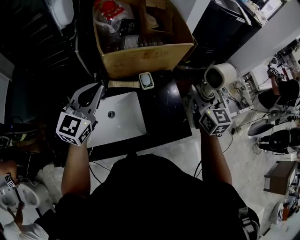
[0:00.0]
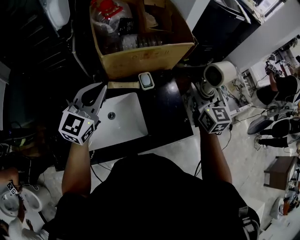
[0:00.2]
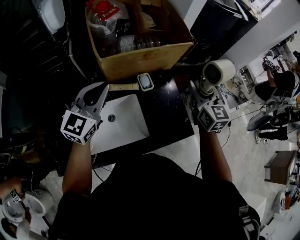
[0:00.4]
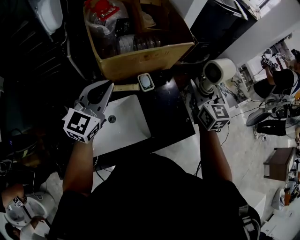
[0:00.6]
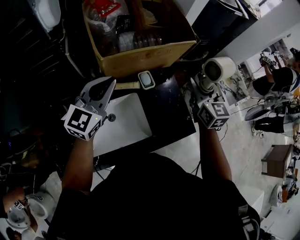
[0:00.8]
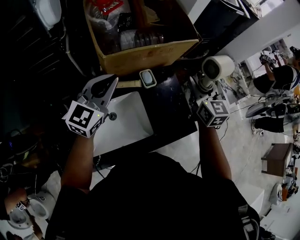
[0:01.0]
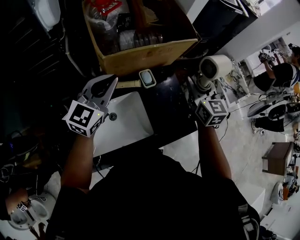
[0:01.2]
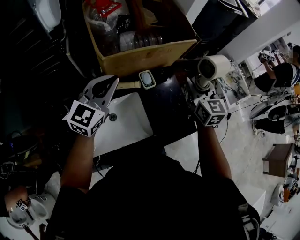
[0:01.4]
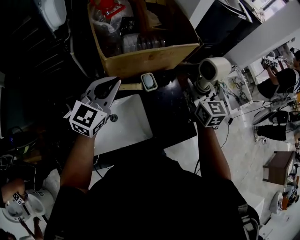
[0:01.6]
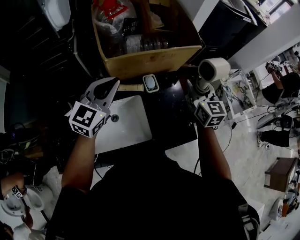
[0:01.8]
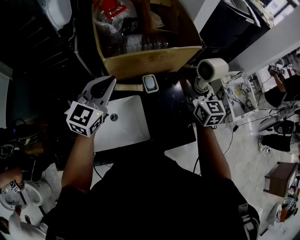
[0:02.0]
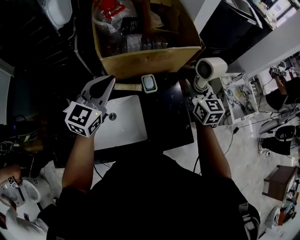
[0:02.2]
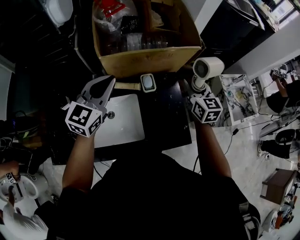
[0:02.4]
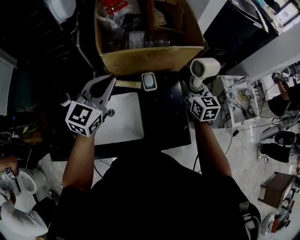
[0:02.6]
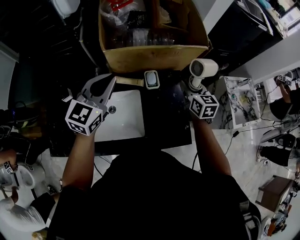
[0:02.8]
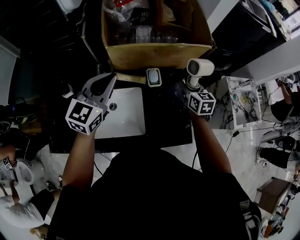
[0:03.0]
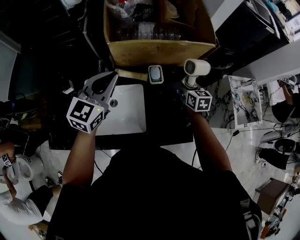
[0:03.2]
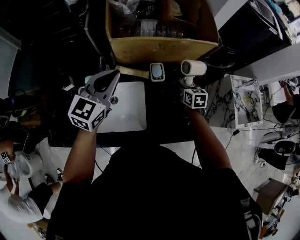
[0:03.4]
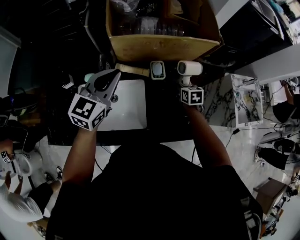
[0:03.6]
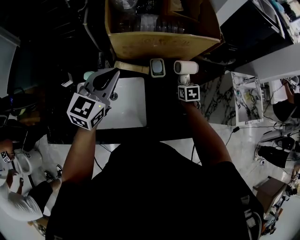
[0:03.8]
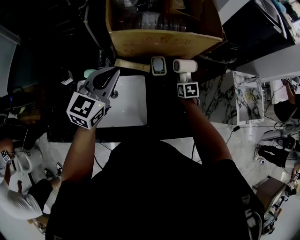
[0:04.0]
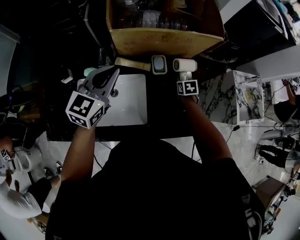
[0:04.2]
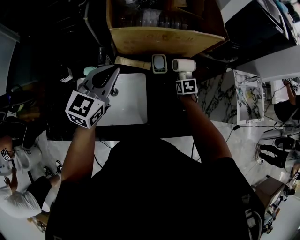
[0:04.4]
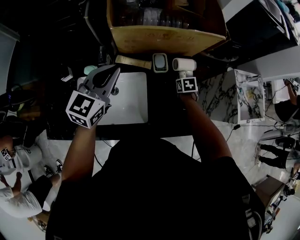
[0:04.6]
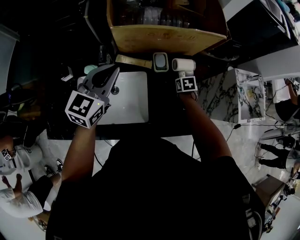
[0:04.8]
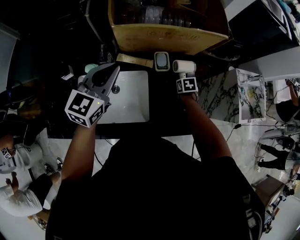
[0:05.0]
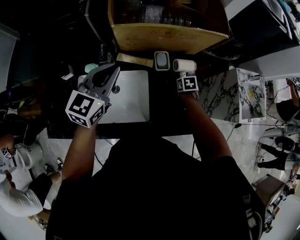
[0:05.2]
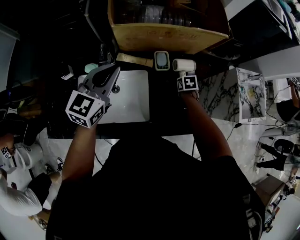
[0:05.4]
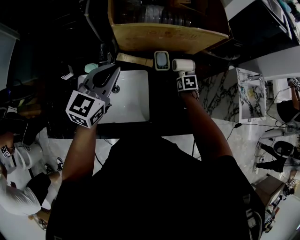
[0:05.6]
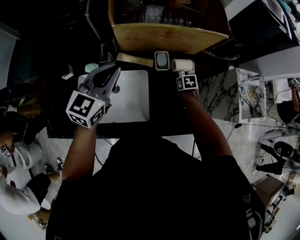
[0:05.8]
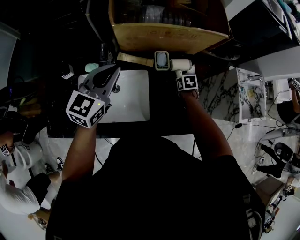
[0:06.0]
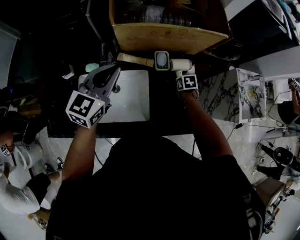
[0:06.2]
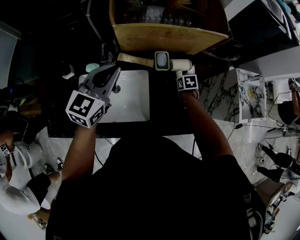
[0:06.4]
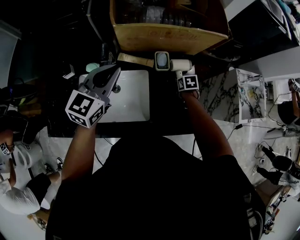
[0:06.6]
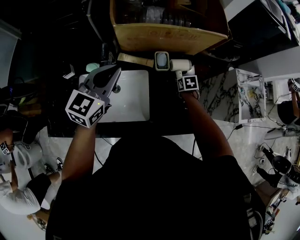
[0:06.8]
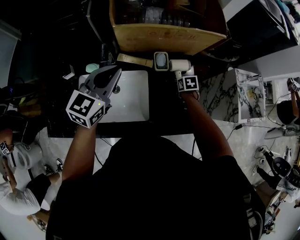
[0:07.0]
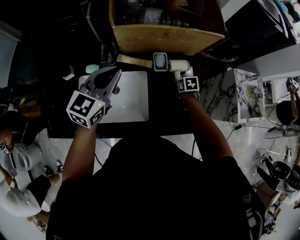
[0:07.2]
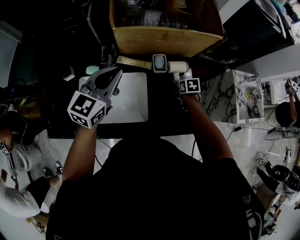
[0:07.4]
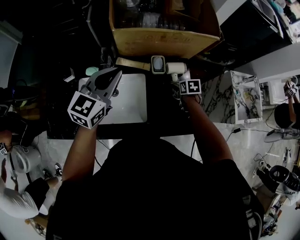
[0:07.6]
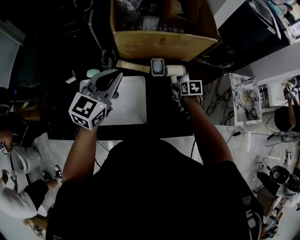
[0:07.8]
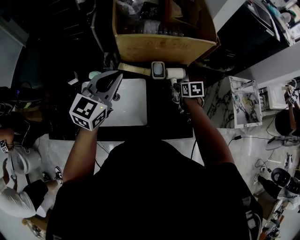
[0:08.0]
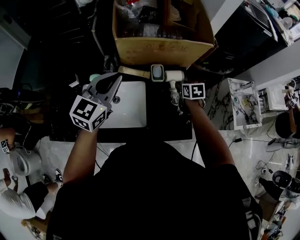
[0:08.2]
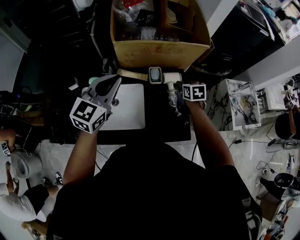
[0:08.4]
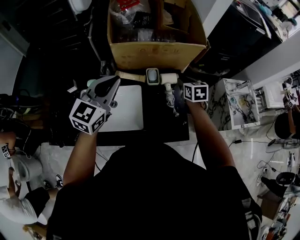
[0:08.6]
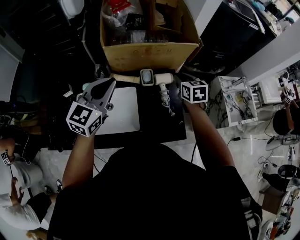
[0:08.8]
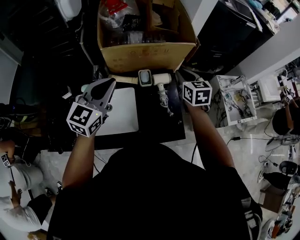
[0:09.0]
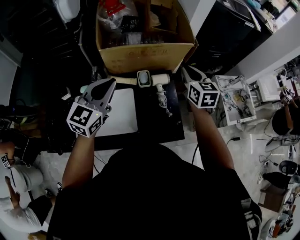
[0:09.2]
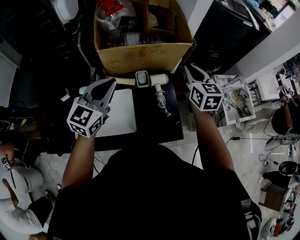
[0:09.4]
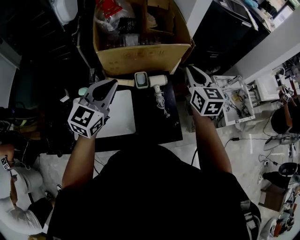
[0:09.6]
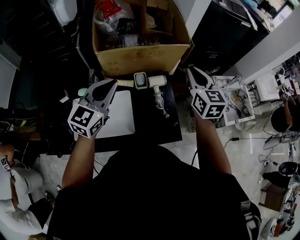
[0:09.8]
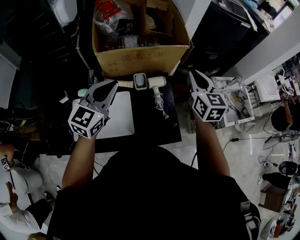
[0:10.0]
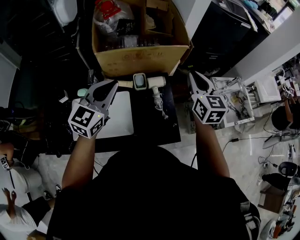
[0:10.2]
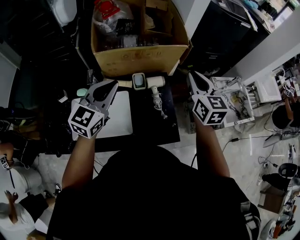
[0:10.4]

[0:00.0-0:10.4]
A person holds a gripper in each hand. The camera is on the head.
0:00.0 to 0:01.4: The right gripper moves to the left, roughly 5 cm. The left gripper is displaced forward by approximately 10 cm.
0:01.4 to 0:03.0: The right gripper moves downward and forward, roughly 15 cm, and changes its angle by roughly 20 degrees.
0:03.0 to 0:04.4: The right gripper is displaced downward by approximately 20 cm, and points its fingers some 40 degrees further downward.
0:04.4 to 0:07.4: There are only small adjustments of the grippers.
0:07.4 to 0:09.0: The left gripper moves upward, approximately 5 cm. Meanwhile the right gripper moves upward, roughly 30 cm, tilts its fingers about 40 degrees upward, and closes up.
0:09.0 to 0:10.4: The right gripper goes roughly 10 cm upward and to the right.

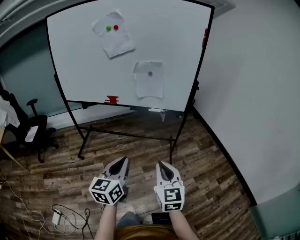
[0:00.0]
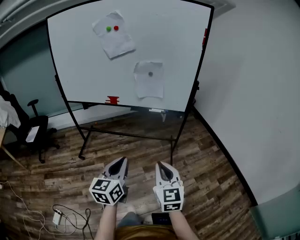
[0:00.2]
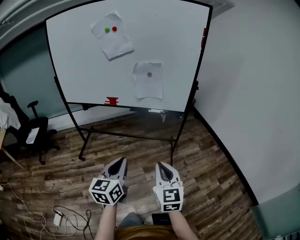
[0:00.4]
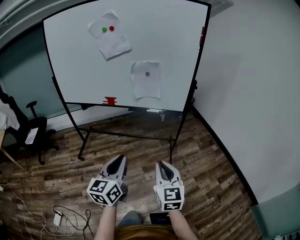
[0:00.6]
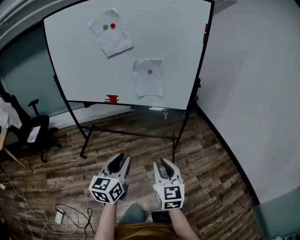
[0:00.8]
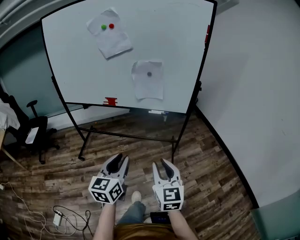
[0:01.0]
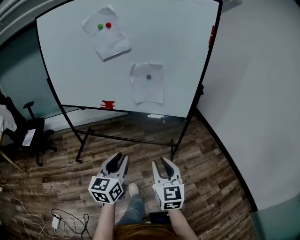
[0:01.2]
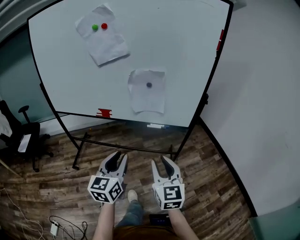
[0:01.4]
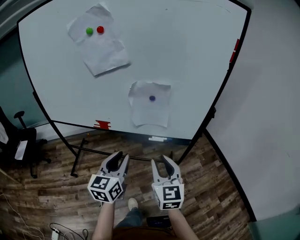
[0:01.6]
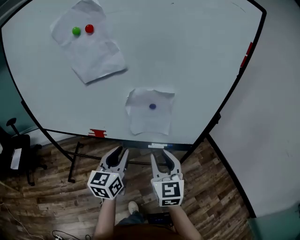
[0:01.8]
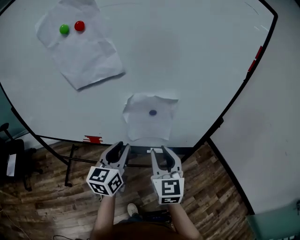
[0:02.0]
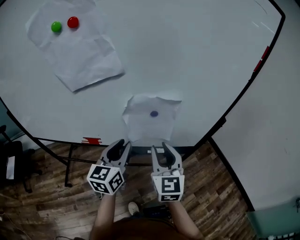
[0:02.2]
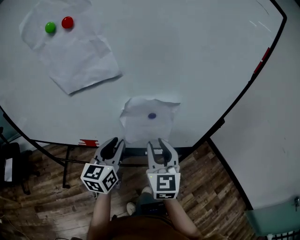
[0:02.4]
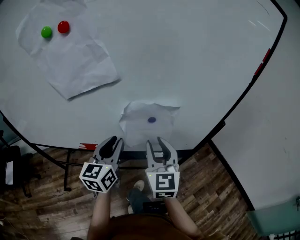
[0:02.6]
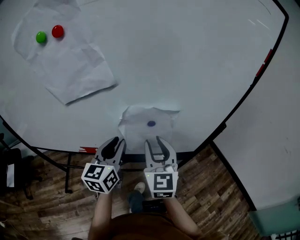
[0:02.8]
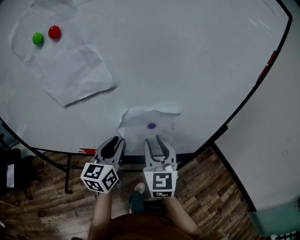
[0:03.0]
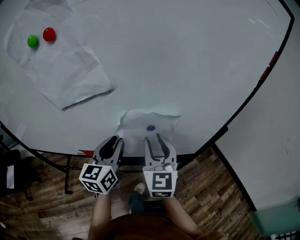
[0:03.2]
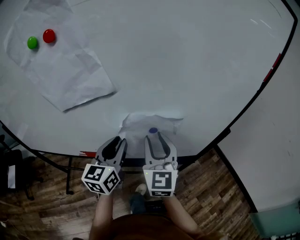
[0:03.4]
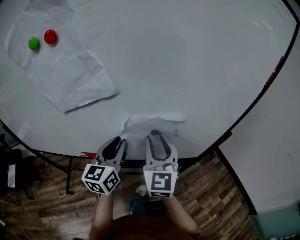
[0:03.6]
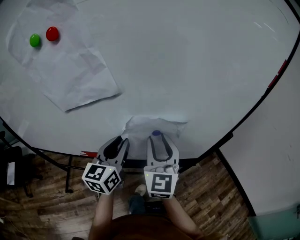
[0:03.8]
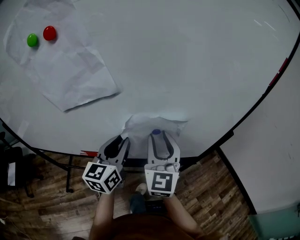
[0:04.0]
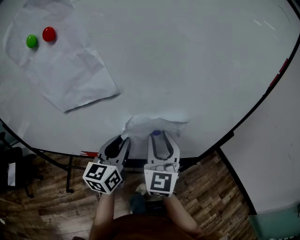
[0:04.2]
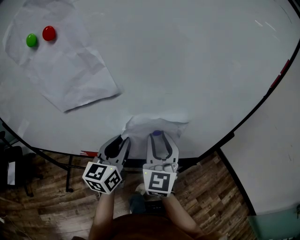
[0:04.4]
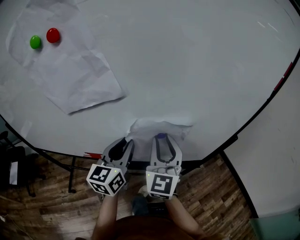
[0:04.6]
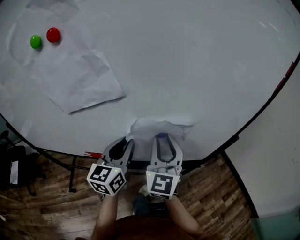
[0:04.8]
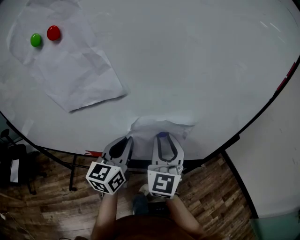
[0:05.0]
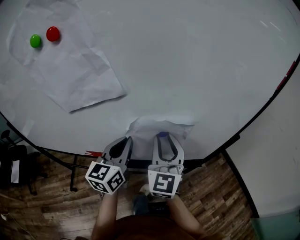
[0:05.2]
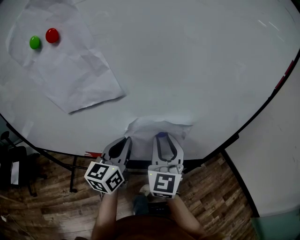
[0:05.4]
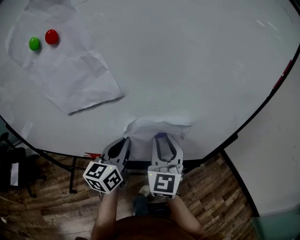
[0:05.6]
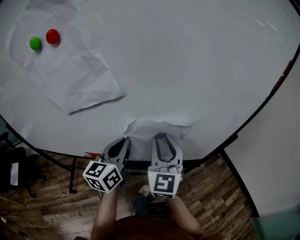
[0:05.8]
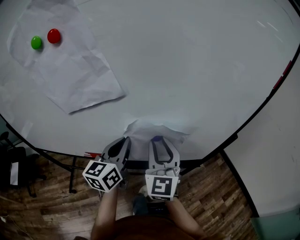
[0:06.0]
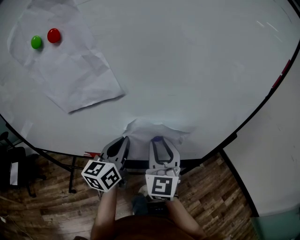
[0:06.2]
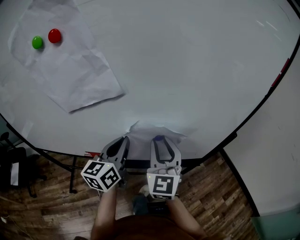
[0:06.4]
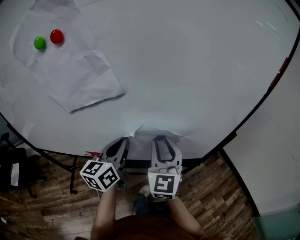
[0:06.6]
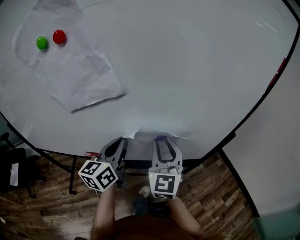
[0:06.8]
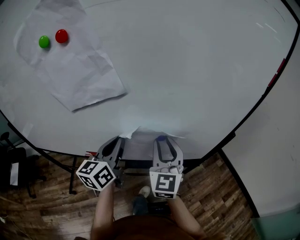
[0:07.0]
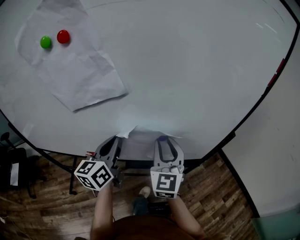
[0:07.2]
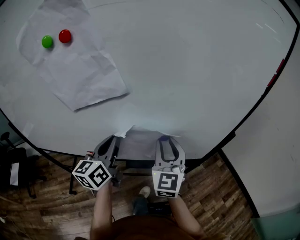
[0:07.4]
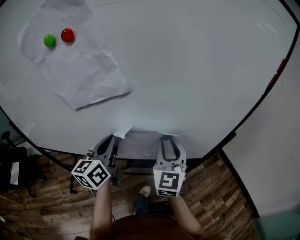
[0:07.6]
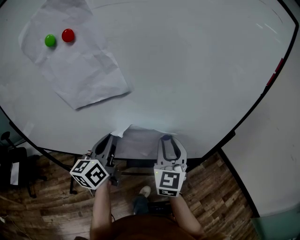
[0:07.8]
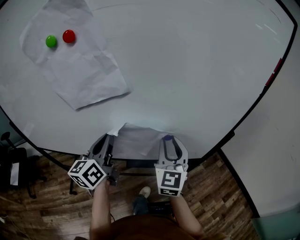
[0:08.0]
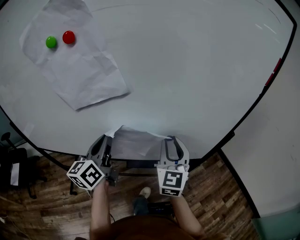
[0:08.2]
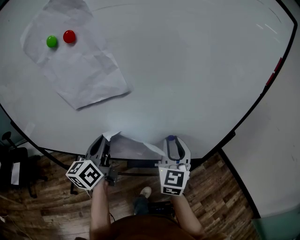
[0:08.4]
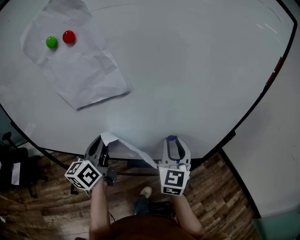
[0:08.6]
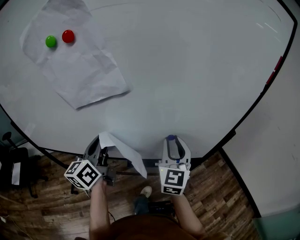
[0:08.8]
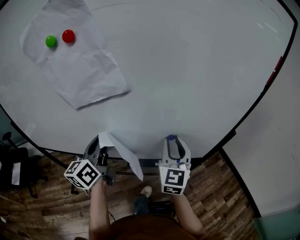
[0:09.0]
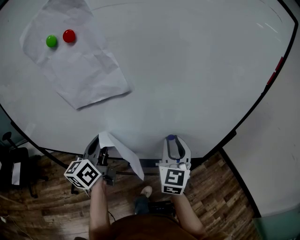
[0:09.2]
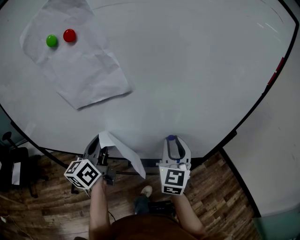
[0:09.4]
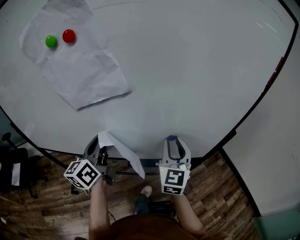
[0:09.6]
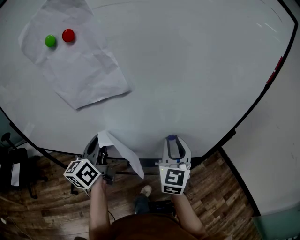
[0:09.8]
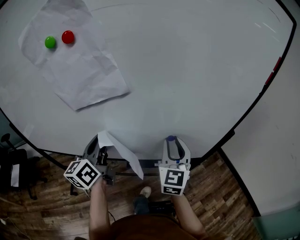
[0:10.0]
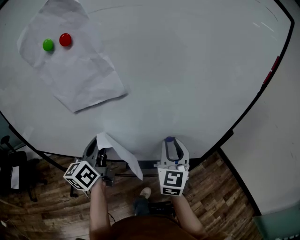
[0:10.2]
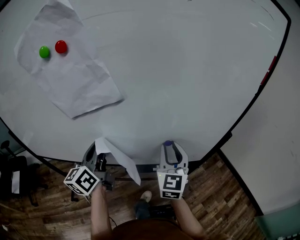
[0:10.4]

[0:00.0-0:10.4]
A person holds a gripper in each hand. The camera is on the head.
0:00.0 to 0:01.4: Both grippers travel together forward, about 20 cm. The right gripper opens up, while the left gripper opens.
0:01.4 to 0:03.0: Both grippers move forward, some 35 cm.
0:03.0 to 0:04.4: The grippers make only small movements.
0:04.4 to 0:06.0: The left gripper closes up.
0:06.0 to 0:07.4: The left gripper changes place by some 5 cm.
0:07.4 to 0:09.0: The left gripper ends up approximately 5 cm from where it was.
0:09.0 to 0:10.4: Both grippers stay put.

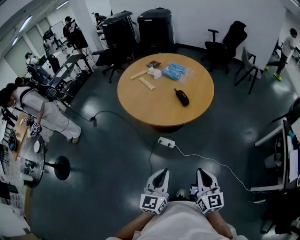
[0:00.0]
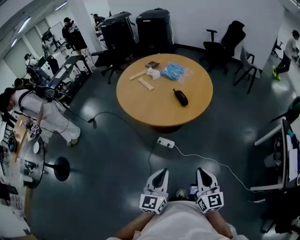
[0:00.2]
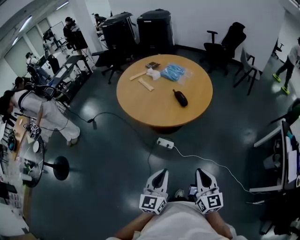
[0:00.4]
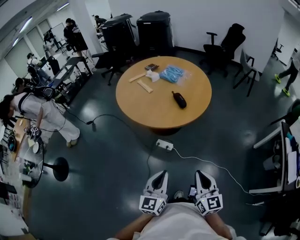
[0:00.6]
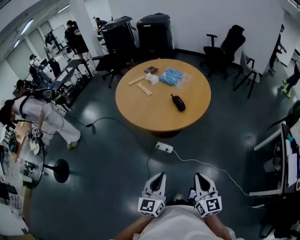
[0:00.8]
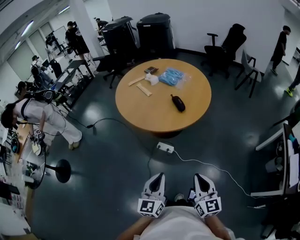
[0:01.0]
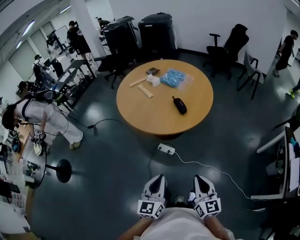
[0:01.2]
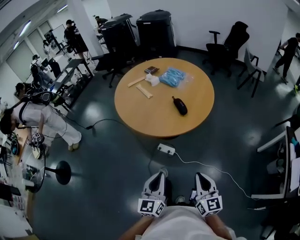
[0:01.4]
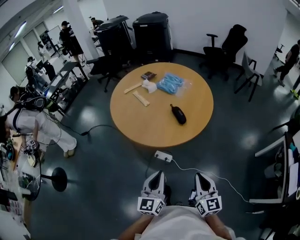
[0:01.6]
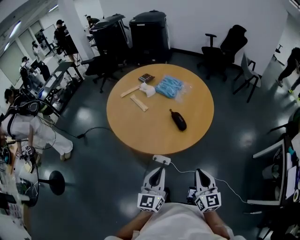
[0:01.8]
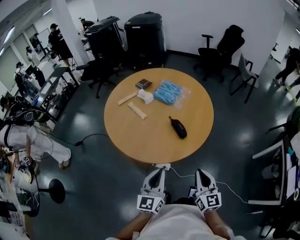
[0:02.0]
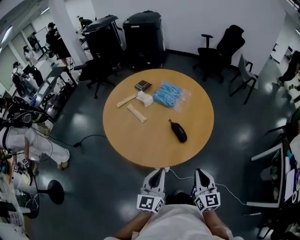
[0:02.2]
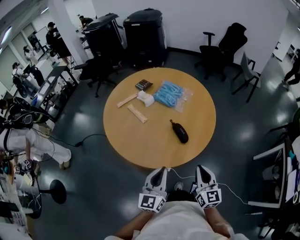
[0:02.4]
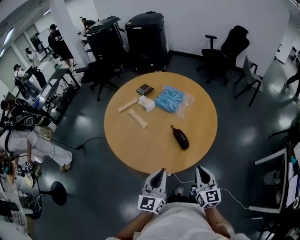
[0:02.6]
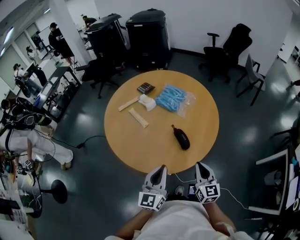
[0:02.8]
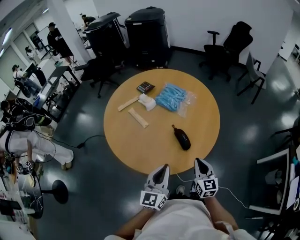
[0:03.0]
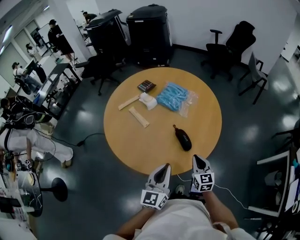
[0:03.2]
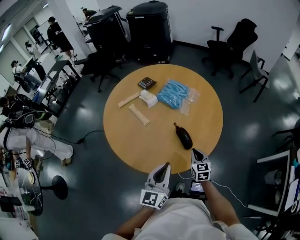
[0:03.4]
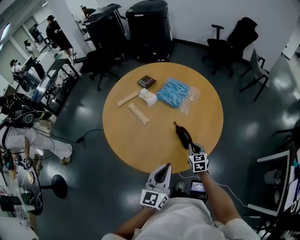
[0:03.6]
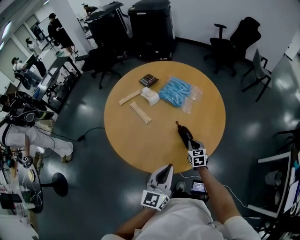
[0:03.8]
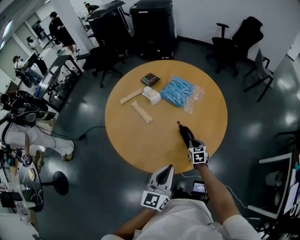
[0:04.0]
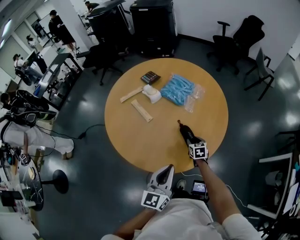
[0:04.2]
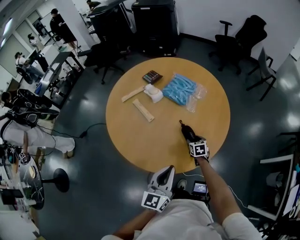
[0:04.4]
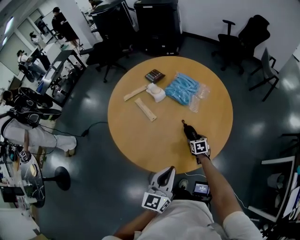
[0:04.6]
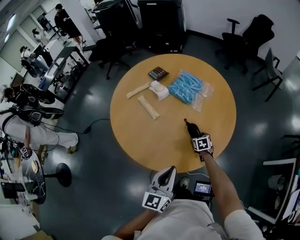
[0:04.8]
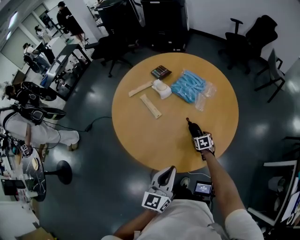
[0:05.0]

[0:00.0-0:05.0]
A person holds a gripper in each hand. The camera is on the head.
0:00.0 to 0:01.6: The two grippers go about 15 cm forward.
0:01.6 to 0:03.4: The right gripper moves forward and downward, some 40 cm, and turns by approximately 20 degrees; the left gripper moves forward, some 30 cm.
0:03.4 to 0:05.0: The right gripper shifts roughly 20 cm downward and forward, points its fingers approximately 30 degrees further downward, and opens up.
